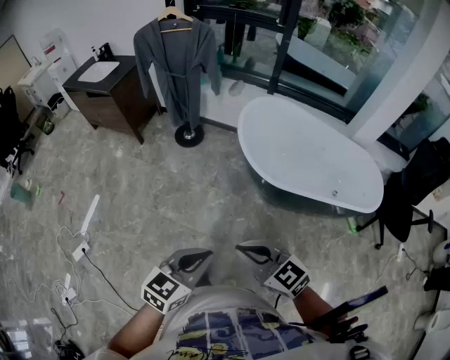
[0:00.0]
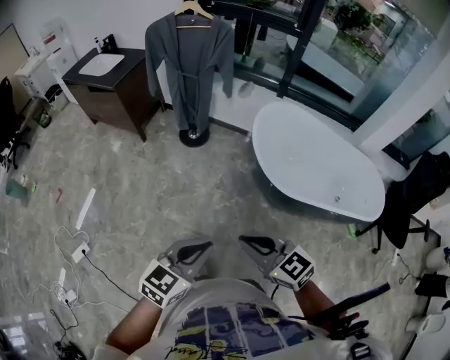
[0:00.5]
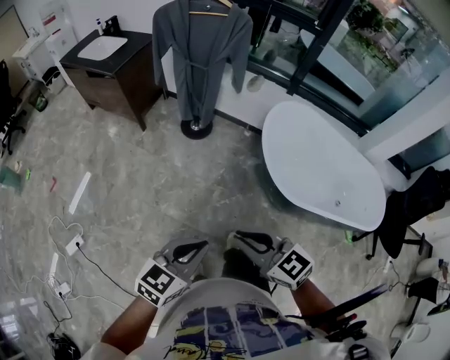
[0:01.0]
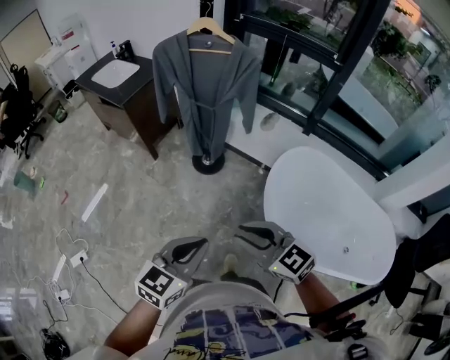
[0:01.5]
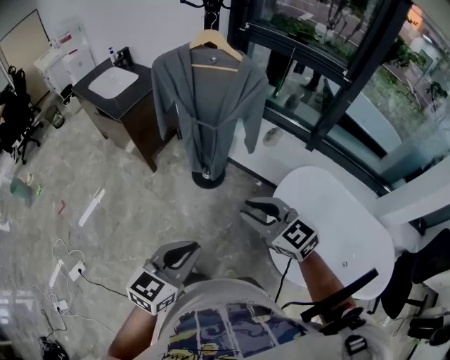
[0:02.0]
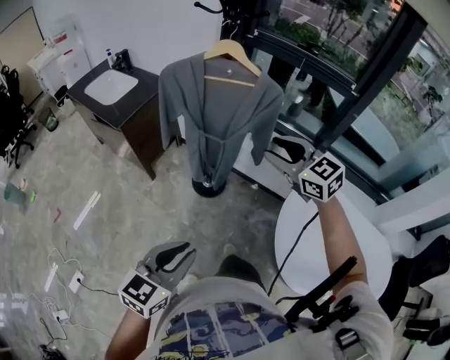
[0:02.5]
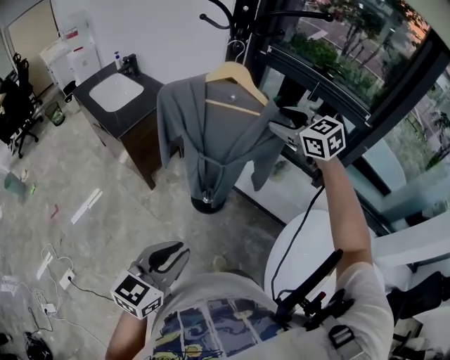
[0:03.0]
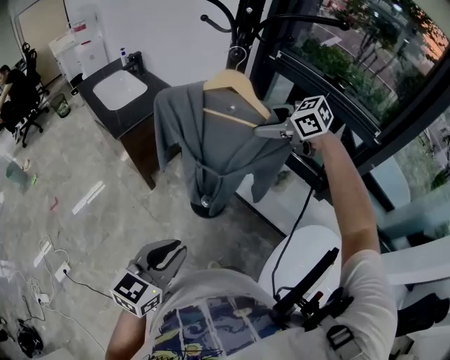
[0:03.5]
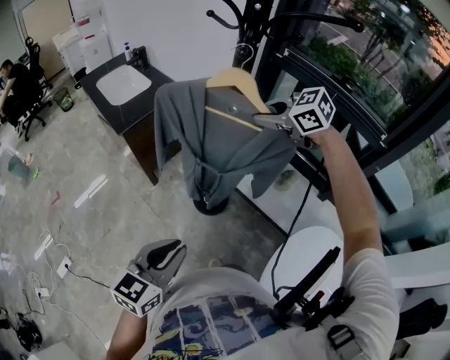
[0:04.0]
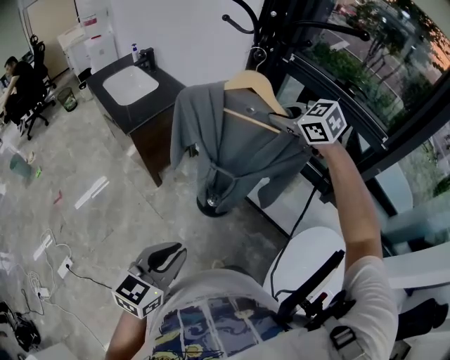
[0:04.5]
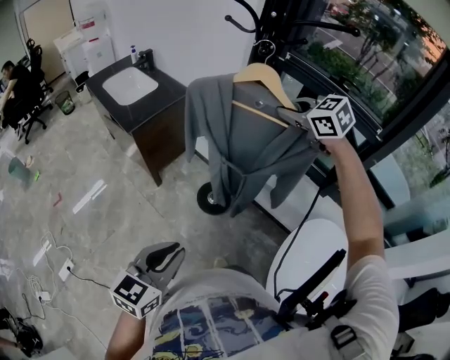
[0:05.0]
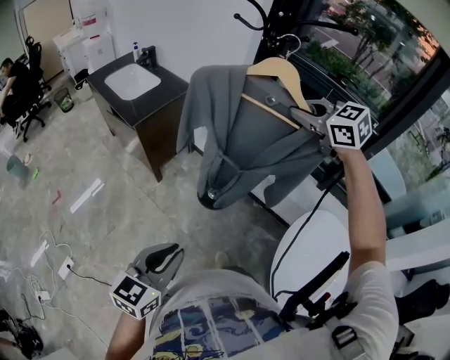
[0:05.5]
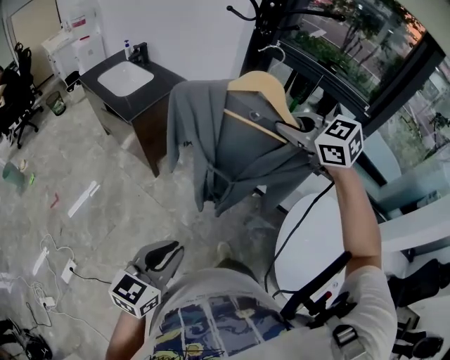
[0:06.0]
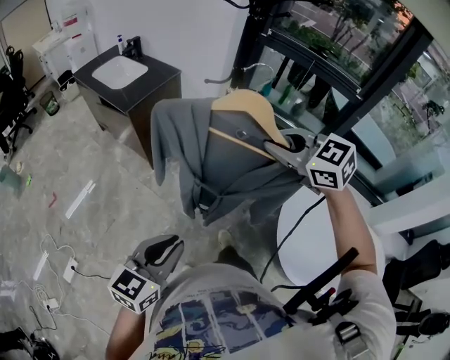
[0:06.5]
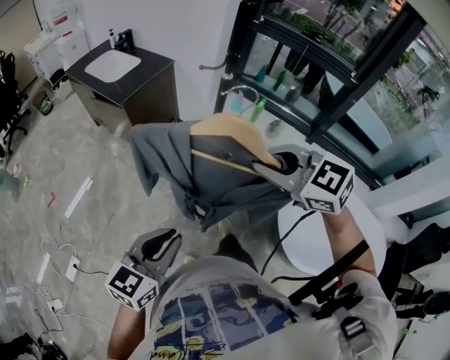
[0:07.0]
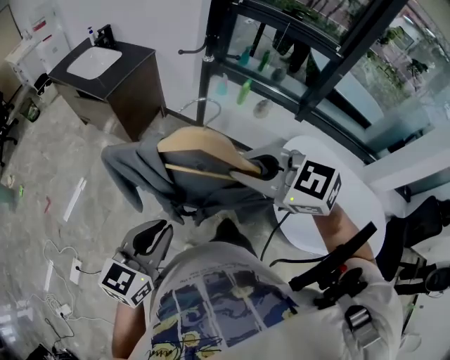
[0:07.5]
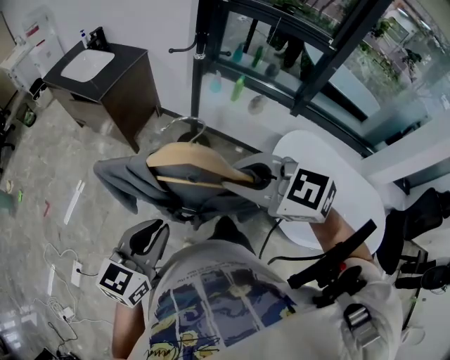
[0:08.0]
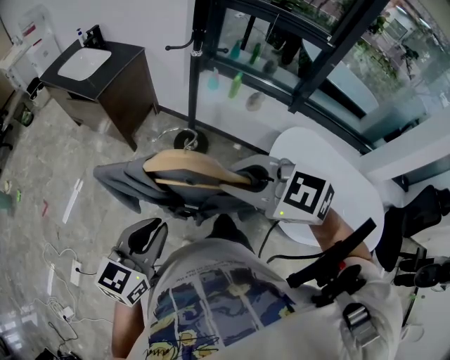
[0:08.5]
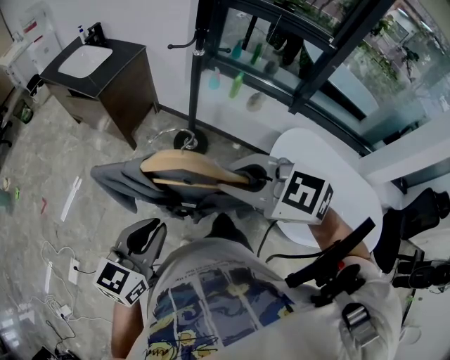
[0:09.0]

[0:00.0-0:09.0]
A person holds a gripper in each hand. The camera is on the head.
0:00.0 to 0:02.0: The pair of grippers is taken forward, roughly 50 cm.
0:02.0 to 0:04.5: The right gripper moves about 50 cm, and opens, then closes again; the left gripper shifts by about 20 cm.
0:04.5 to 0:07.0: The left gripper travels backward and to the left by some 20 cm. Meanwhile the right gripper shifts roughly 40 cm backward.
0:07.0 to 0:09.0: The right gripper goes about 10 cm backward.

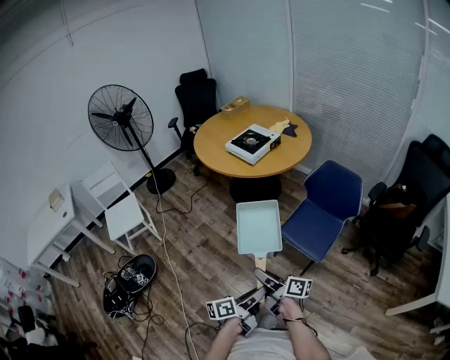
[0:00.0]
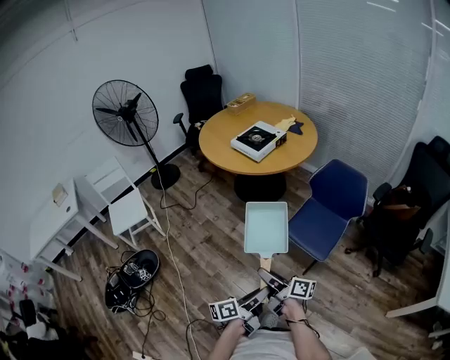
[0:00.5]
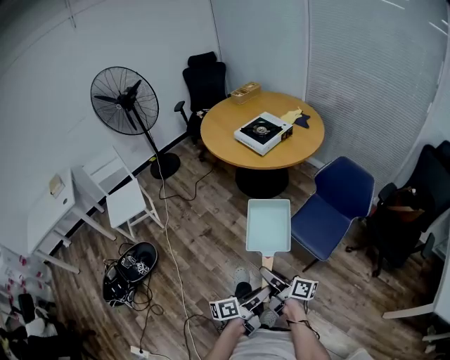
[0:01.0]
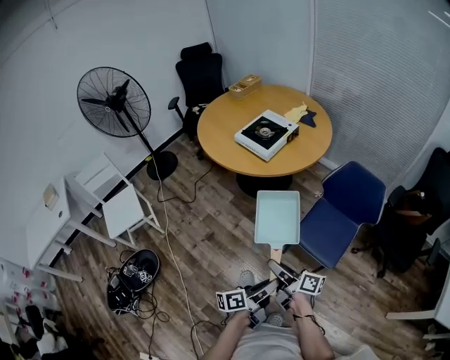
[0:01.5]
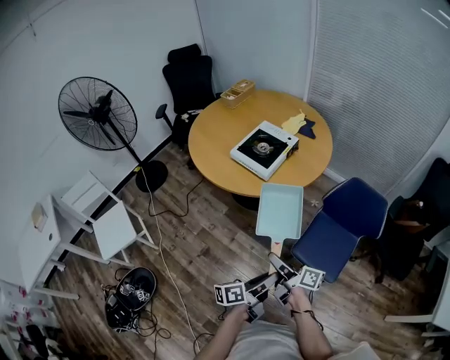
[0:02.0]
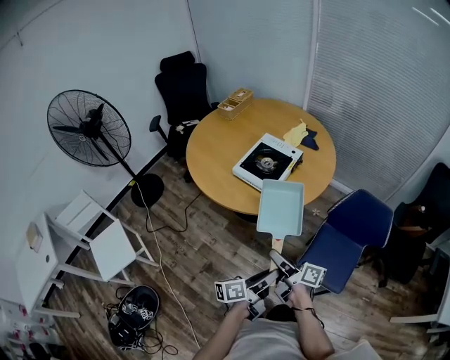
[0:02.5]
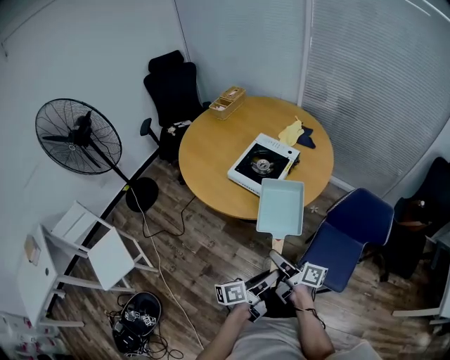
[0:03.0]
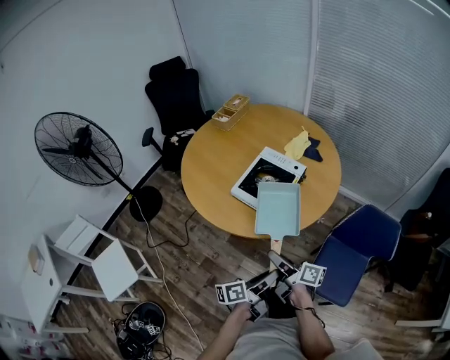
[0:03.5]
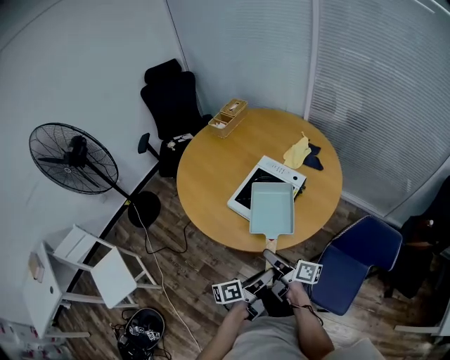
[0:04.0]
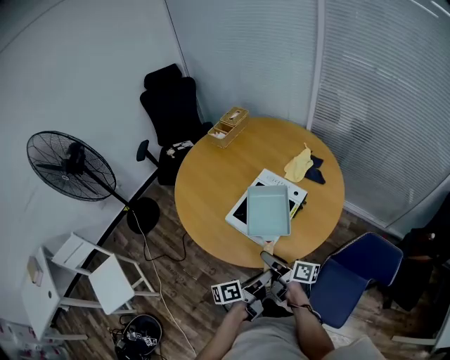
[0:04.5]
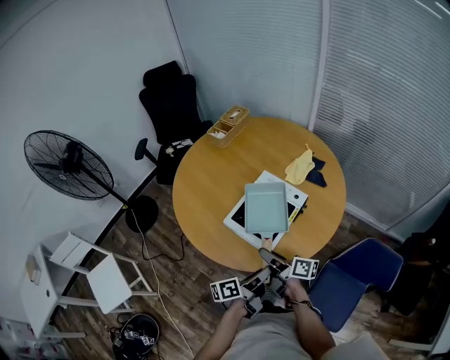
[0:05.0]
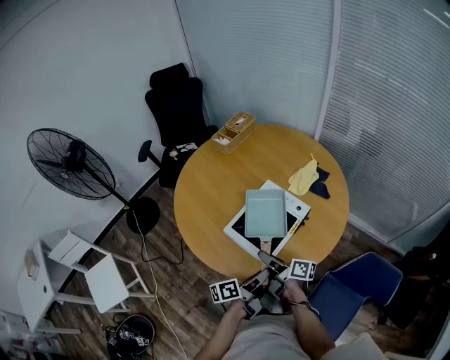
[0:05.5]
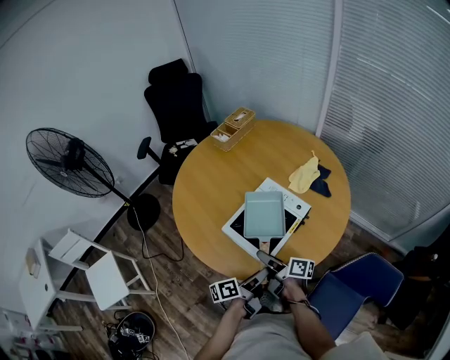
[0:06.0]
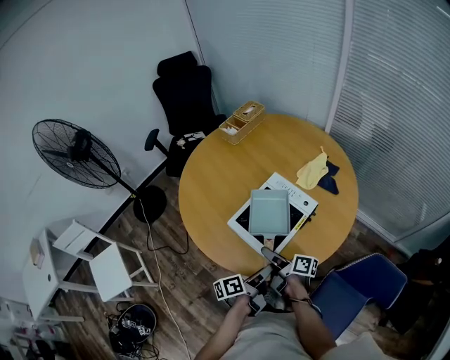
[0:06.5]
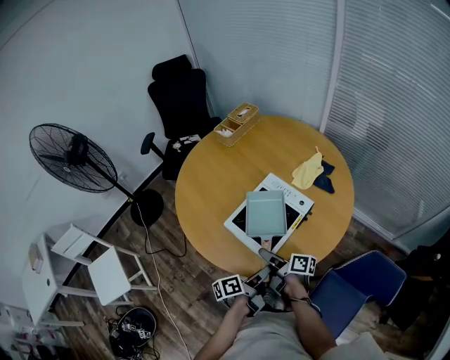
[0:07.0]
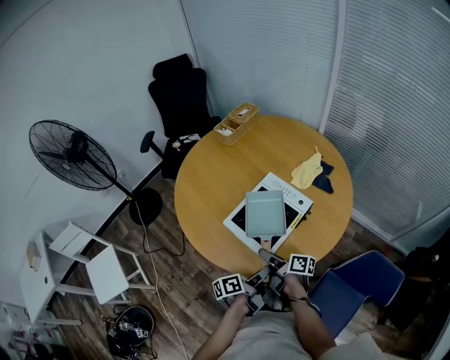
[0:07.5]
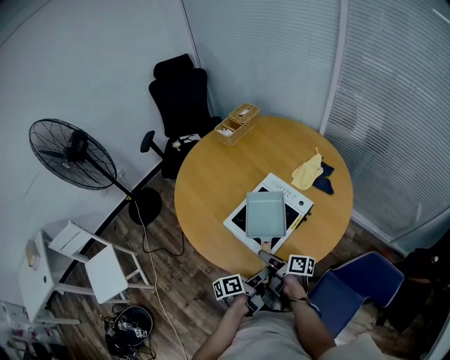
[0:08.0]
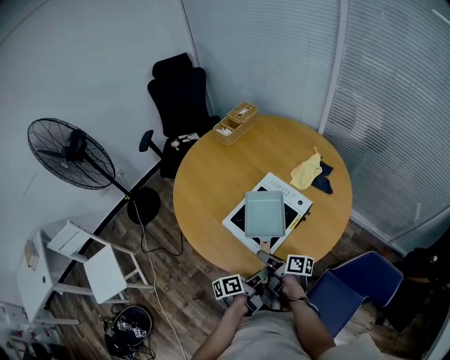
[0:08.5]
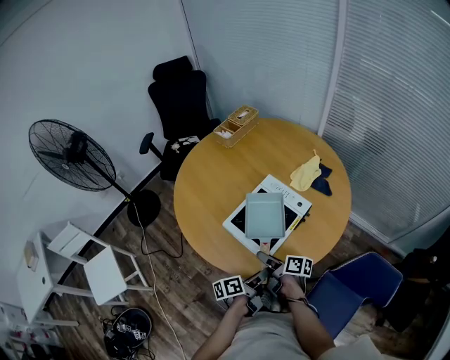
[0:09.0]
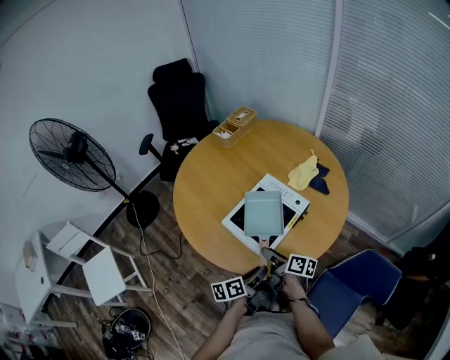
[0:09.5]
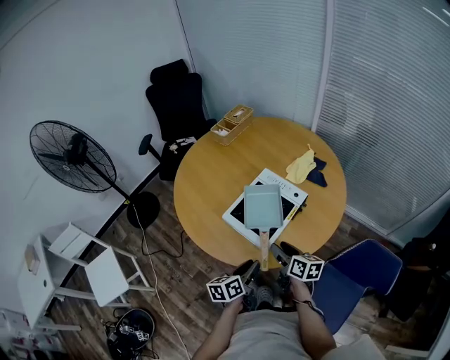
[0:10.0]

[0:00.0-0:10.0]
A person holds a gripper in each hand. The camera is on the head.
0:00.0 to 0:02.0: Both grippers move forward, approximately 30 cm.
0:02.0 to 0:04.0: The grippers both shift forward by some 30 cm.
0:04.0 to 0:06.0: The left gripper shifts some 15 cm forward, while the right gripper heads forward and downward, covering approximately 15 cm.
0:06.0 to 0:08.0: The grippers stay close to where they were, moving slightly.
0:08.0 to 0:10.0: The right gripper shifts roughly 5 cm to the right, and rotates about 30 degrees; the left gripper moves roughly 5 cm, and swivels some 30 degrees.

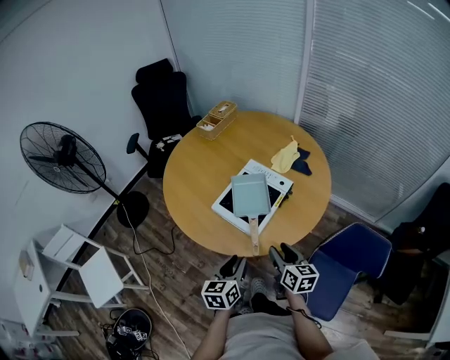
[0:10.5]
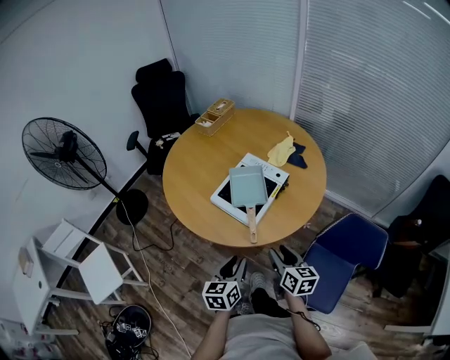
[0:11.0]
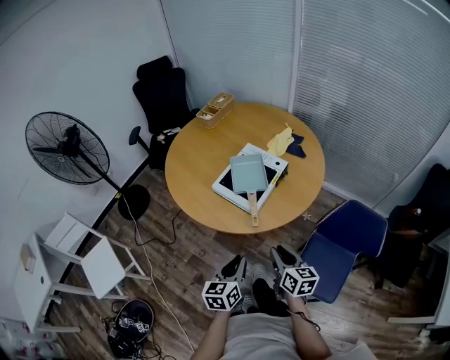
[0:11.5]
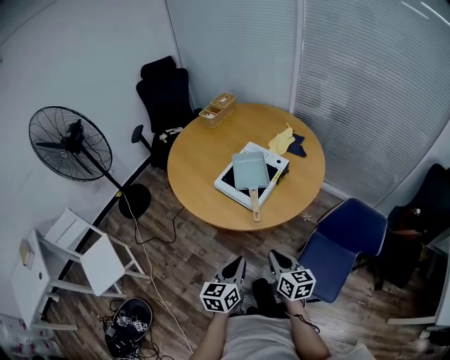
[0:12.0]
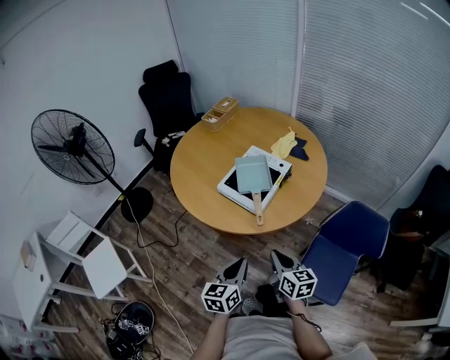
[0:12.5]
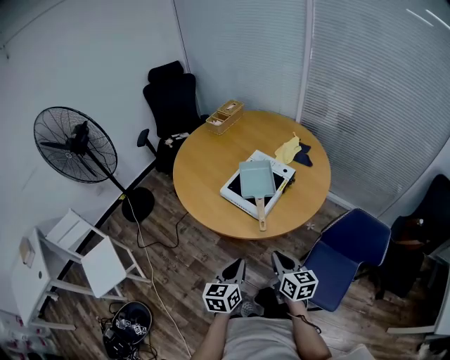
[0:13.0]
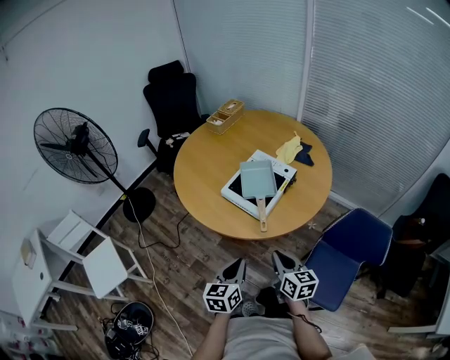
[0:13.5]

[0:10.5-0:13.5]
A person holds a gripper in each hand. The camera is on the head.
0:10.5 to 0:12.0: The grippers both shift backward by roughly 15 cm. The left gripper closes up. Meanwhile the right gripper closes up.
0:12.0 to 0:13.5: The grippers move only a little.

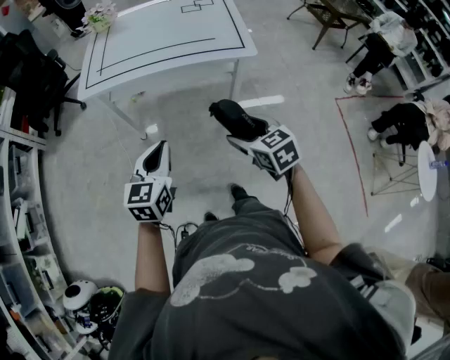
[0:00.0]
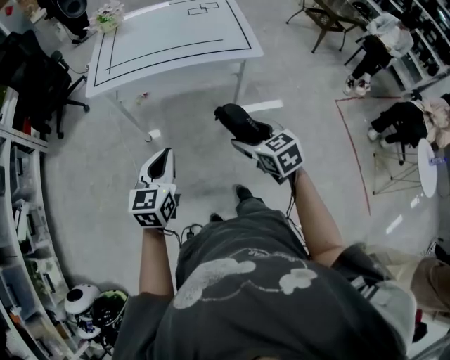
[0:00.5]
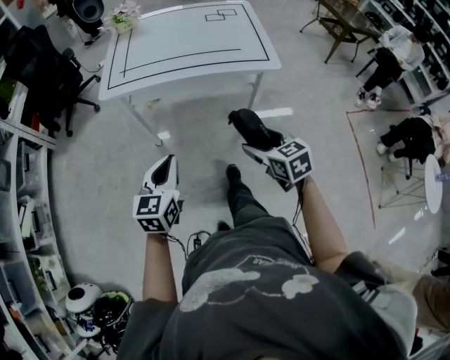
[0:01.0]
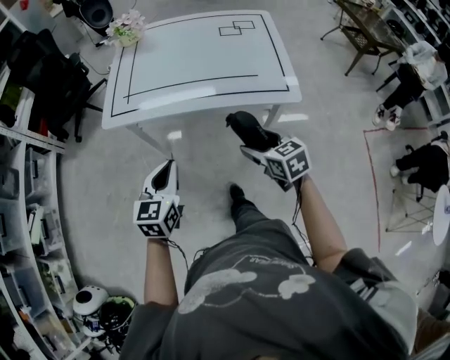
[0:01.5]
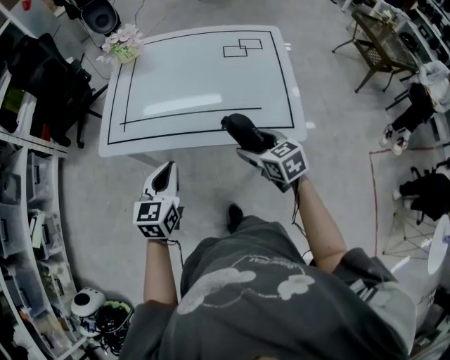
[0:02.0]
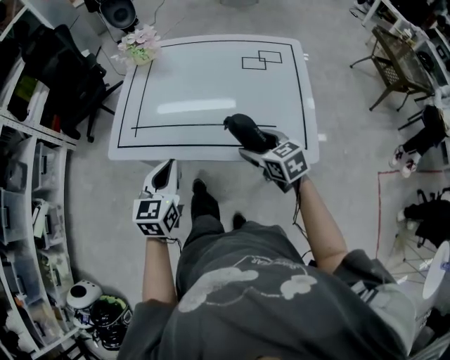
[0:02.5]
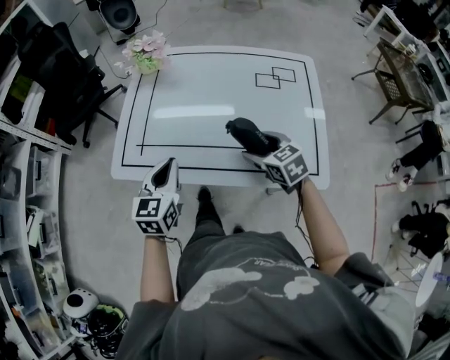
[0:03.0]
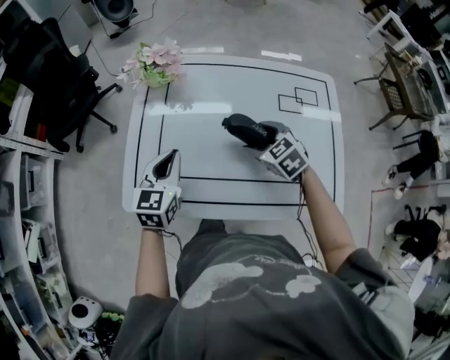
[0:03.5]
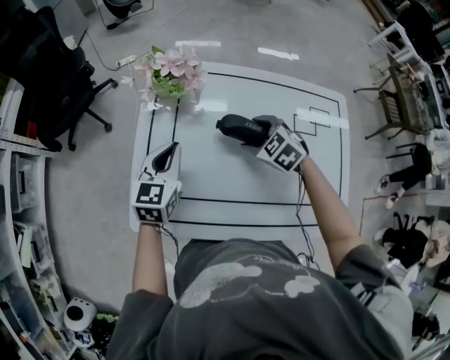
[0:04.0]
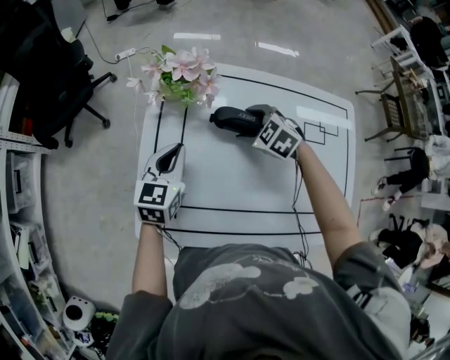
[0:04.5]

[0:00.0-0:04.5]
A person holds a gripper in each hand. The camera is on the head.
0:00.0 to 0:02.0: Both grippers travel together forward, roughly 30 cm.
0:02.0 to 0:04.5: Both grippers are carried forward, some 50 cm. The right gripper swivels some 50 degrees.
